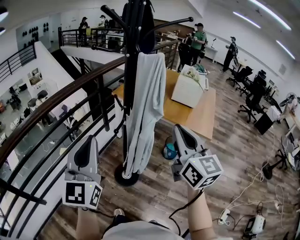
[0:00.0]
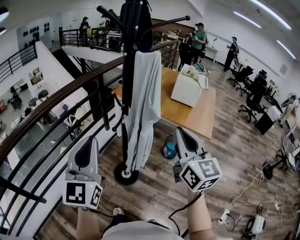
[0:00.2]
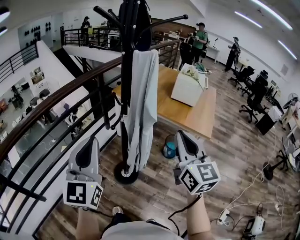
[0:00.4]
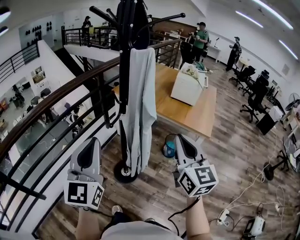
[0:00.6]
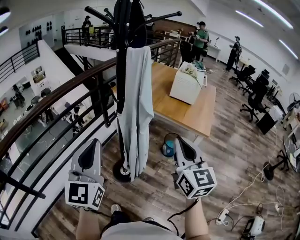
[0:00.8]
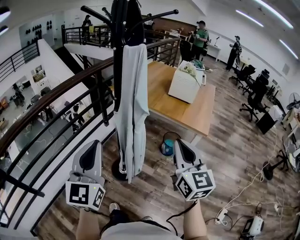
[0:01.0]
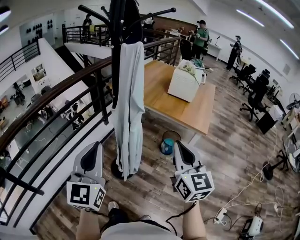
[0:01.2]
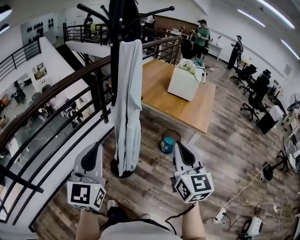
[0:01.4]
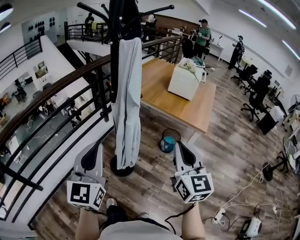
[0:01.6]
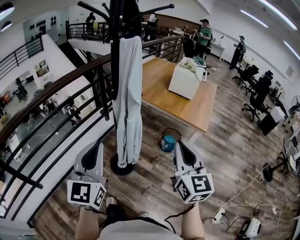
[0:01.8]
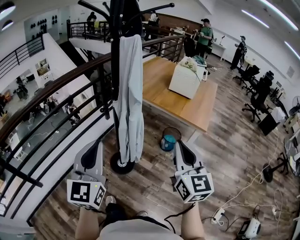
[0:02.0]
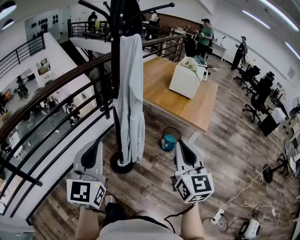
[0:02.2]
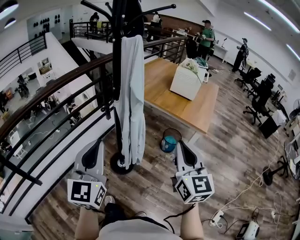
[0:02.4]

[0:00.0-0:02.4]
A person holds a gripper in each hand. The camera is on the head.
0:00.0 to 0:01.2: The left gripper goes roughly 10 cm to the right, while the right gripper heads to the right, backward and downward, covering roughly 10 cm.
0:01.2 to 0:02.4: There are only small adjustments of the grippers.

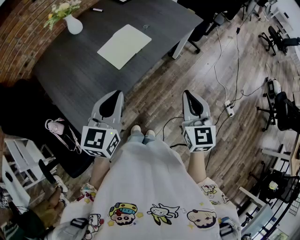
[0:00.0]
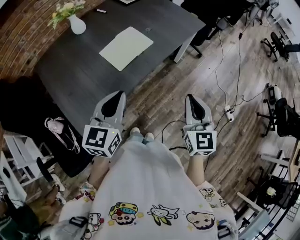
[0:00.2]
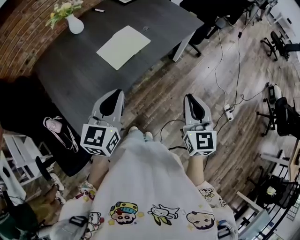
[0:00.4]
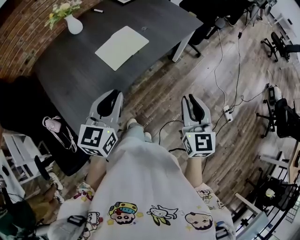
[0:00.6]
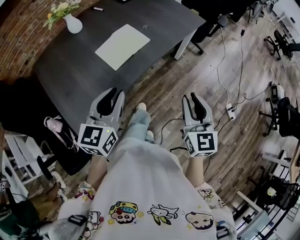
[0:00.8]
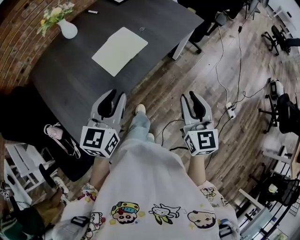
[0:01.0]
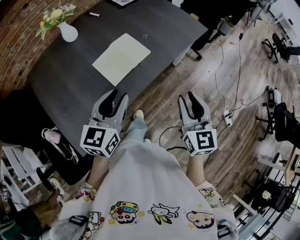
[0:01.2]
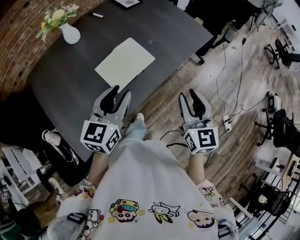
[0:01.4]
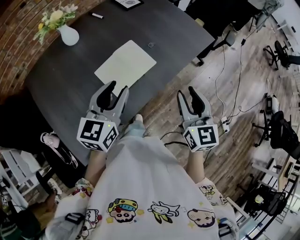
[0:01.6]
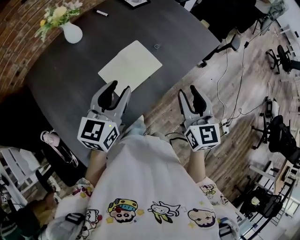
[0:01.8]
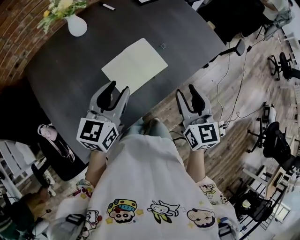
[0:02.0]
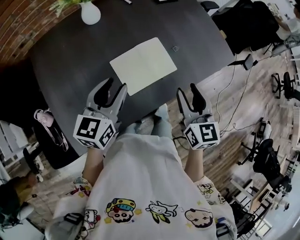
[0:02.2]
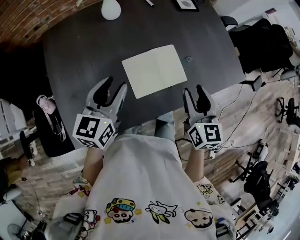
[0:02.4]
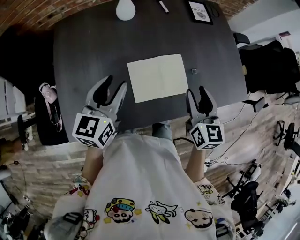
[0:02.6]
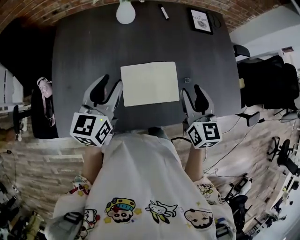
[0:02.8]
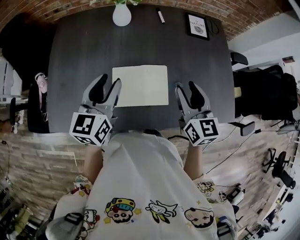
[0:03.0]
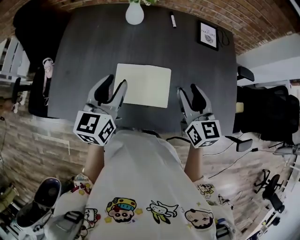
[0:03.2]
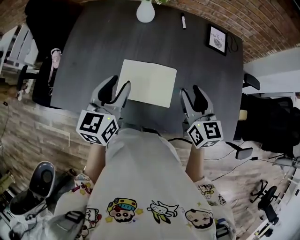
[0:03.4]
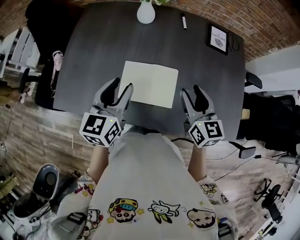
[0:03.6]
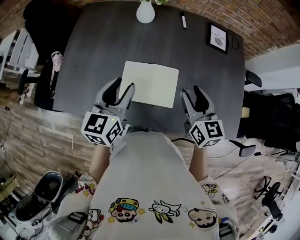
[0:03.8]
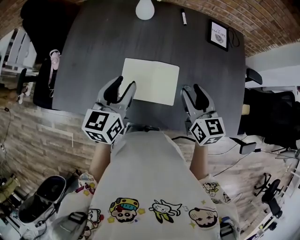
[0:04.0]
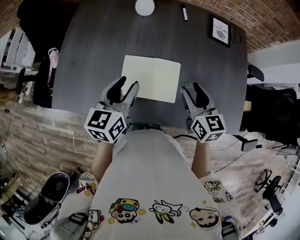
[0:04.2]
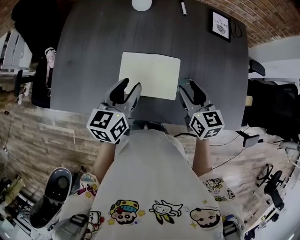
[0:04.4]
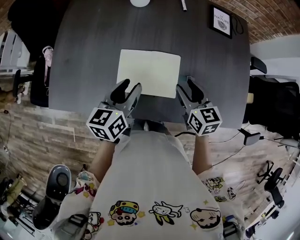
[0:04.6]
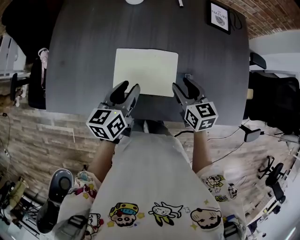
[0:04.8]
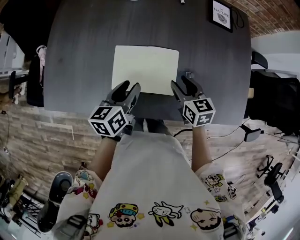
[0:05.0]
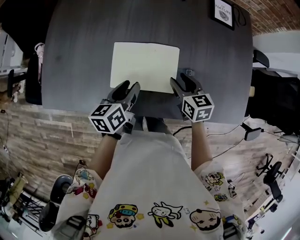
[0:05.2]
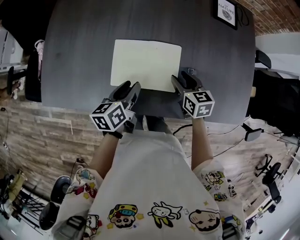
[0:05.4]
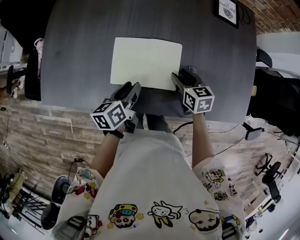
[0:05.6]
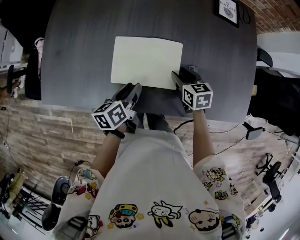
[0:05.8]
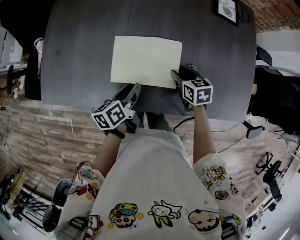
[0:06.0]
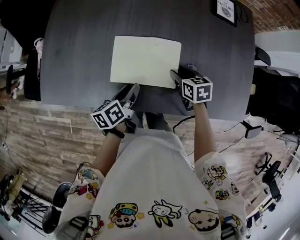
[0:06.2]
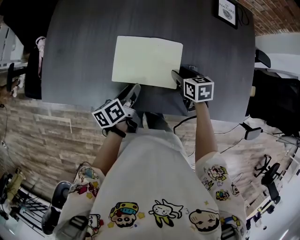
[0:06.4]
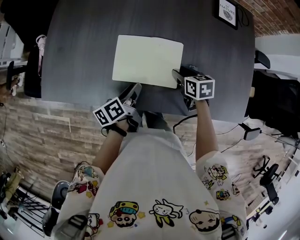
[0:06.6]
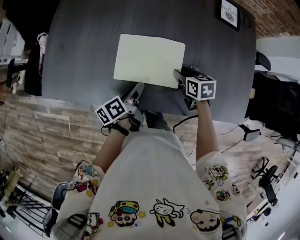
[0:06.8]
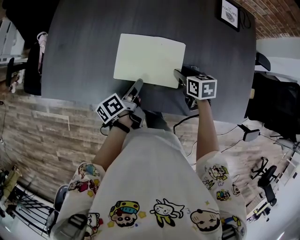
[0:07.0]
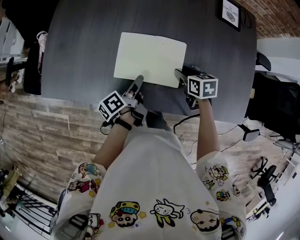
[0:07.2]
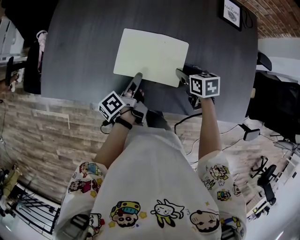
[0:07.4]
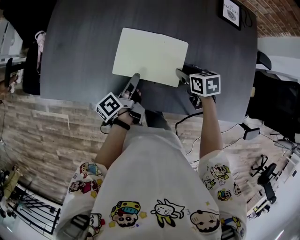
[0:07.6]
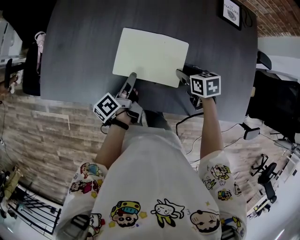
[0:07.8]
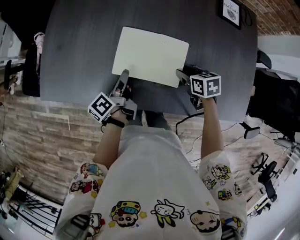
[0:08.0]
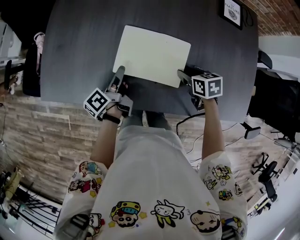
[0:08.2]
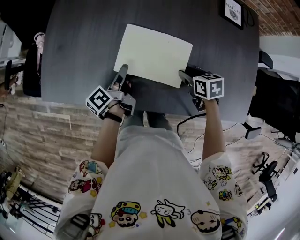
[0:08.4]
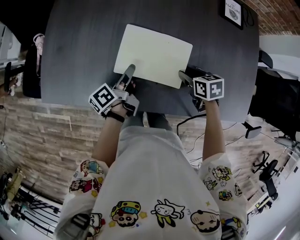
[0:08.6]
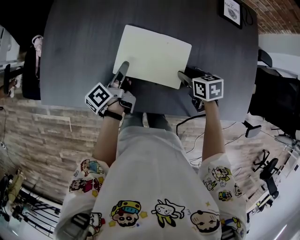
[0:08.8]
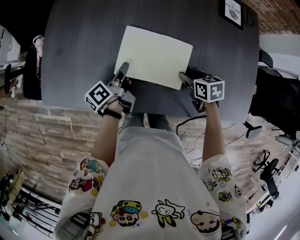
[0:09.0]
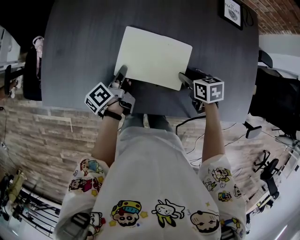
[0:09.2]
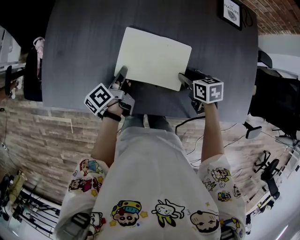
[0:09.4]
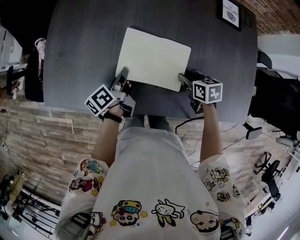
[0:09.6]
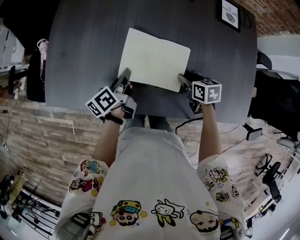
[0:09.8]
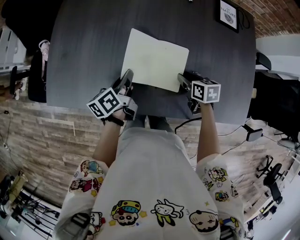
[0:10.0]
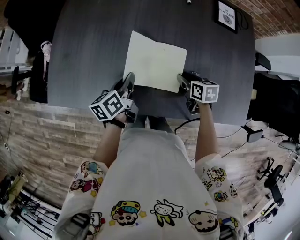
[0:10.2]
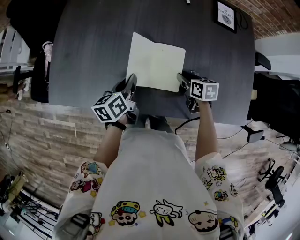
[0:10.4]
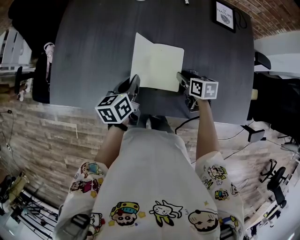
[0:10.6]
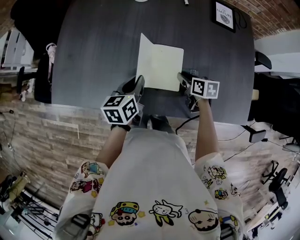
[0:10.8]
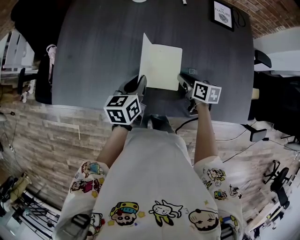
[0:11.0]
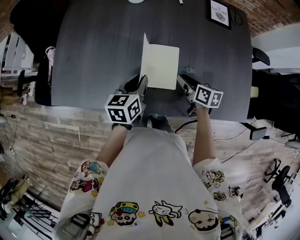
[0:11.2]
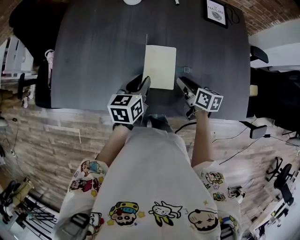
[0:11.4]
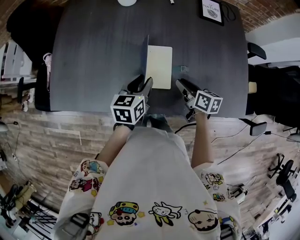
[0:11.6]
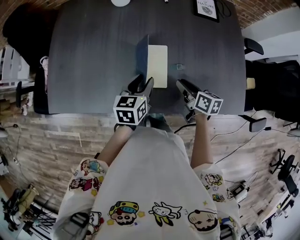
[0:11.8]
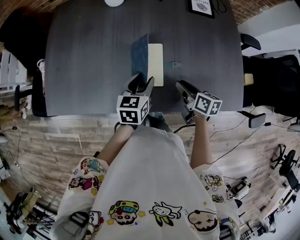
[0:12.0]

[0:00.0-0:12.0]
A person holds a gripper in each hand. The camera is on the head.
0:00.0 to 0:01.6: Both grippers move forward, some 20 cm. The left gripper opens its fingers; the right gripper opens.
0:01.6 to 0:03.0: The right gripper moves approximately 25 cm, and changes its angle by approximately 40 degrees; the left gripper ends up about 10 cm from where it was, and swivels roughly 50 degrees.
0:03.0 to 0:04.4: The two grippers go about 5 cm downward.
0:04.4 to 0:06.0: The two grippers go approximately 15 cm downward. The right gripper swivels roughly 30 degrees. Meanwhile the left gripper changes its angle by roughly 30 degrees.
0:06.0 to 0:07.6: The left gripper changes its angle by approximately 40 degrees.
0:07.6 to 0:09.0: The left gripper travels forward by roughly 5 cm.
0:09.0 to 0:10.4: The left gripper moves upward, some 5 cm, changes its angle by about 40 degrees, and closes.
0:10.4 to 0:12.0: The left gripper is displaced to the right by roughly 15 cm, changes its angle by some 30 degrees, and opens up, while the right gripper is displaced backward and to the right by roughly 10 cm, and changes its angle by about 30 degrees.

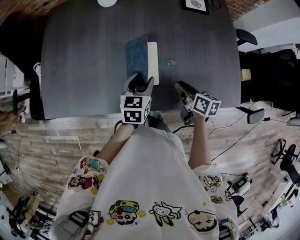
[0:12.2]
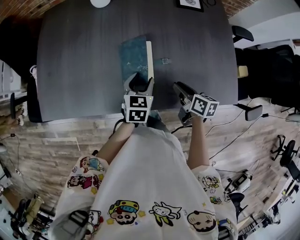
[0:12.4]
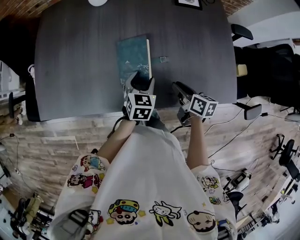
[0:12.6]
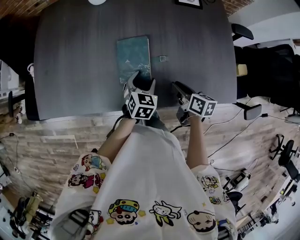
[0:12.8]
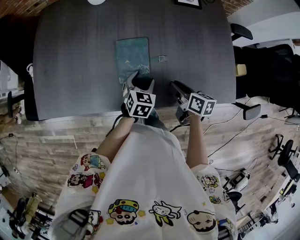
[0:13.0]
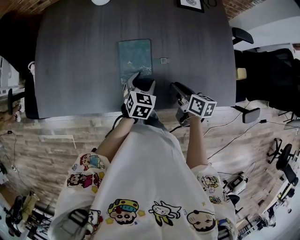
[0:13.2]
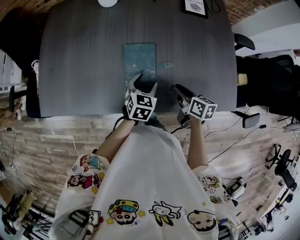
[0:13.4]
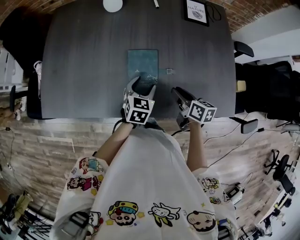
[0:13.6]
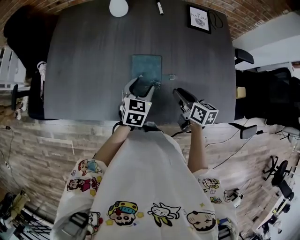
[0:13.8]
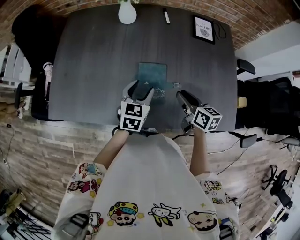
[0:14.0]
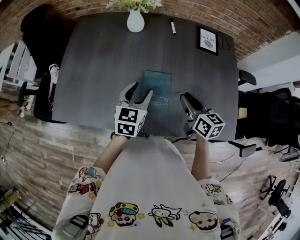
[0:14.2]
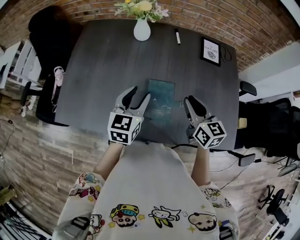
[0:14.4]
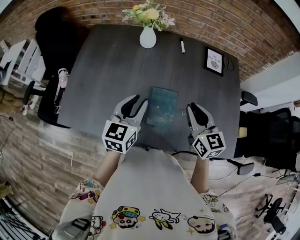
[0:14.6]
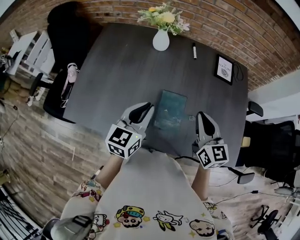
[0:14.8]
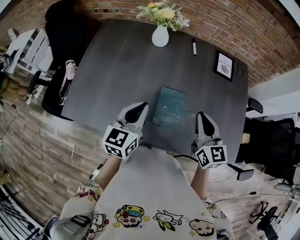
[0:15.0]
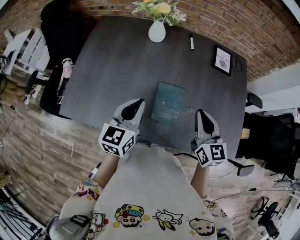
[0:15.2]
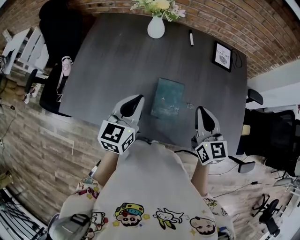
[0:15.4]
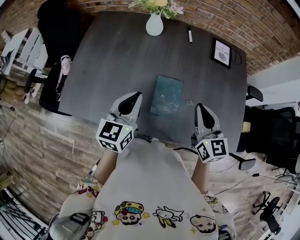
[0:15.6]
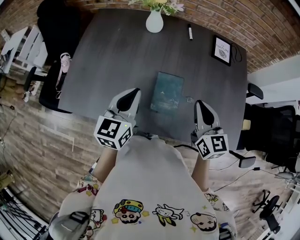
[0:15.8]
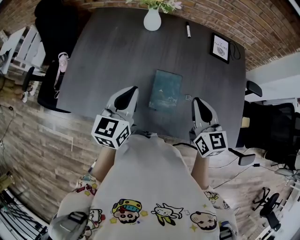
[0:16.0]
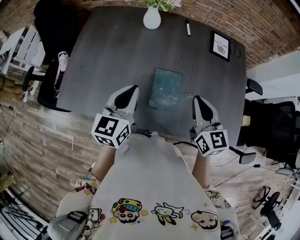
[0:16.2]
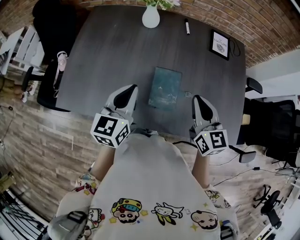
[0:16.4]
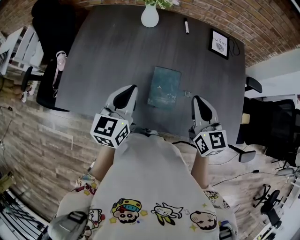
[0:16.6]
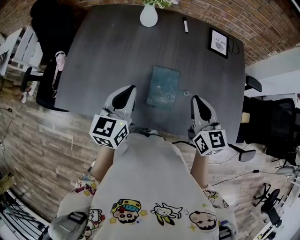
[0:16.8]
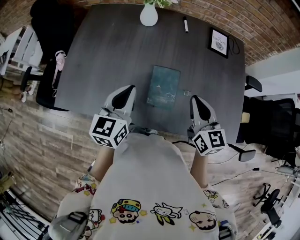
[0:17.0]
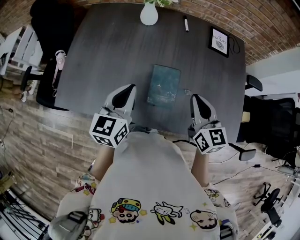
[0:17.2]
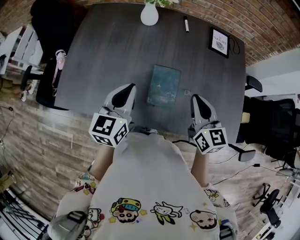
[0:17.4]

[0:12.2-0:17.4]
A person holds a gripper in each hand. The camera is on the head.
0:12.2 to 0:14.0: The left gripper shifts by approximately 5 cm. Meanwhile the right gripper heads upward, covering roughly 10 cm.
0:14.0 to 0:15.6: The right gripper moves upward, approximately 15 cm, turns by approximately 30 degrees, and closes, while the left gripper goes some 15 cm upward and to the left, and closes its fingers.
0:15.6 to 0:17.4: The grippers move only a little.

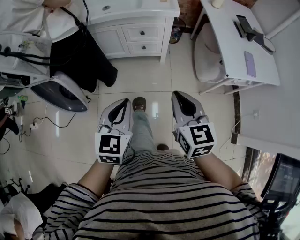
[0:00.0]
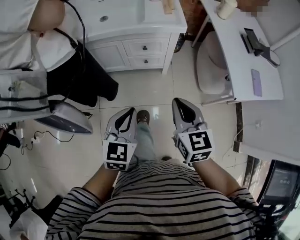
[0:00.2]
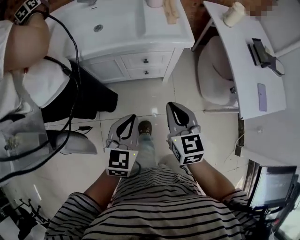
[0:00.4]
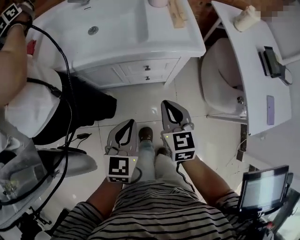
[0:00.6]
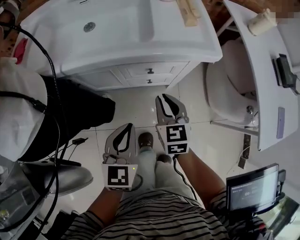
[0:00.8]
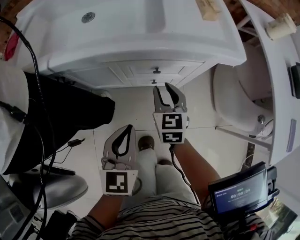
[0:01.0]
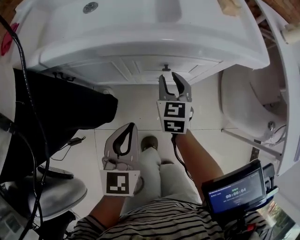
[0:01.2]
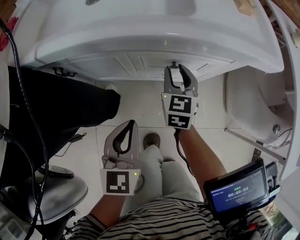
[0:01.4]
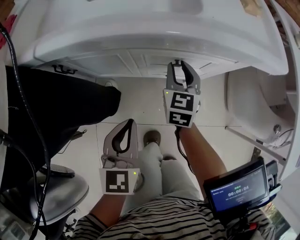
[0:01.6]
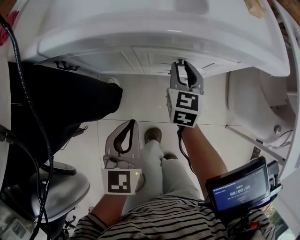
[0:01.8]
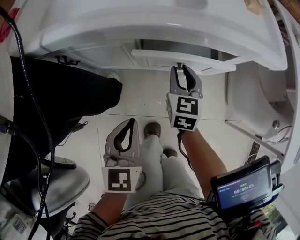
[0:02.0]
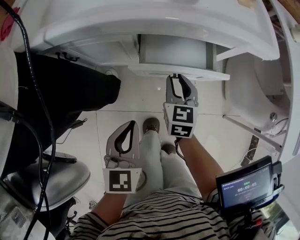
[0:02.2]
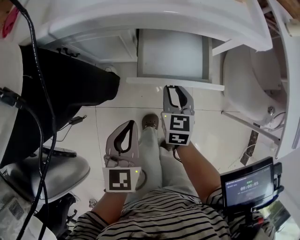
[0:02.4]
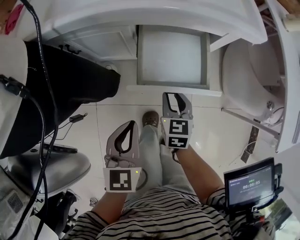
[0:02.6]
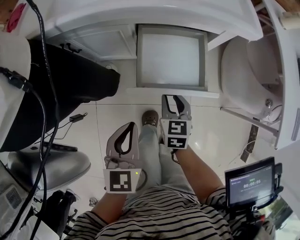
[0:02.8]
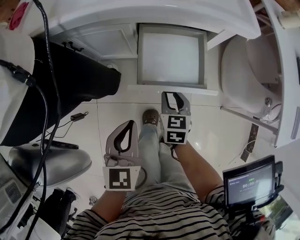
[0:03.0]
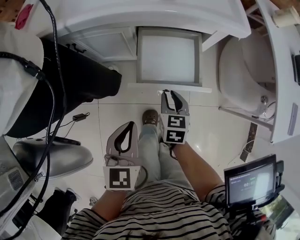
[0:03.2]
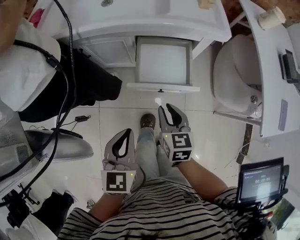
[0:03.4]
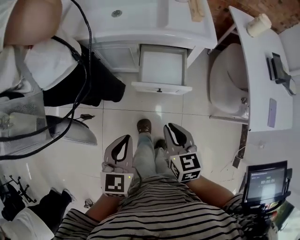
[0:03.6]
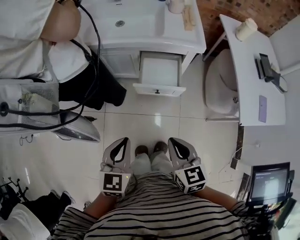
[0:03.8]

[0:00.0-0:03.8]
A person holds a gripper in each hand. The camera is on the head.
0:00.0 to 0:01.2: The grippers both shift forward and downward by some 50 cm. The right gripper opens.
0:01.2 to 0:02.6: The right gripper moves backward, approximately 15 cm; the left gripper goes approximately 10 cm backward.
0:02.6 to 0:03.8: Both grippers move upward and backward, about 35 cm. The right gripper closes.
